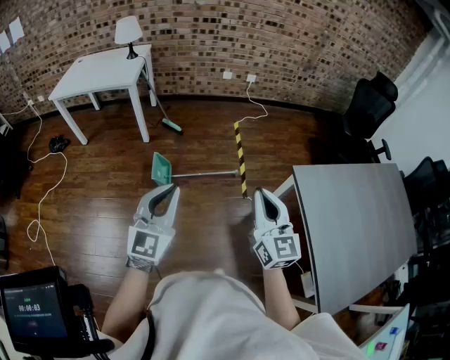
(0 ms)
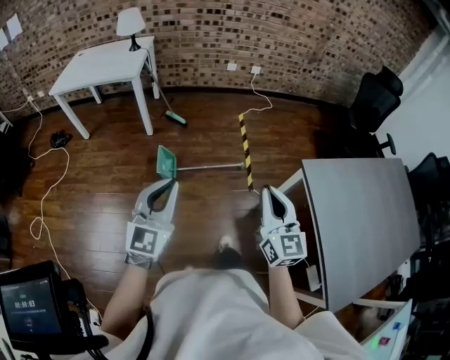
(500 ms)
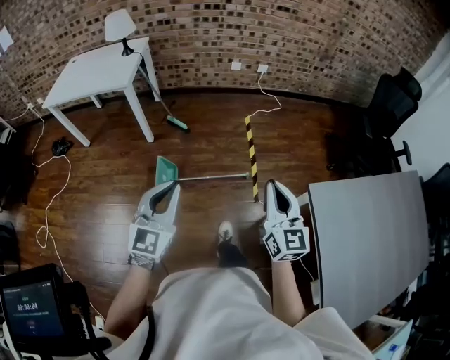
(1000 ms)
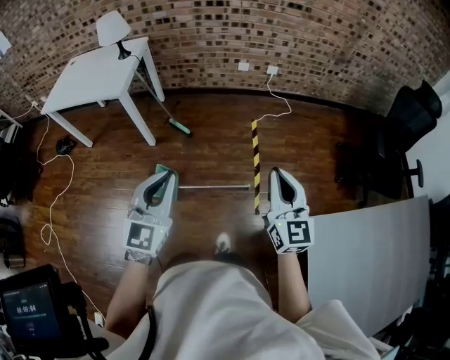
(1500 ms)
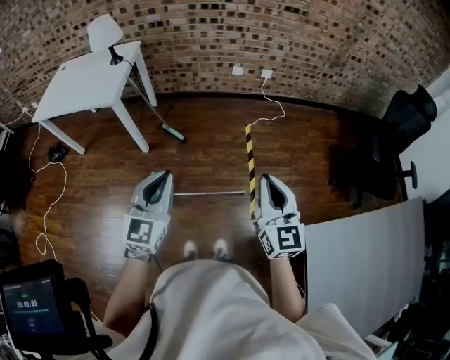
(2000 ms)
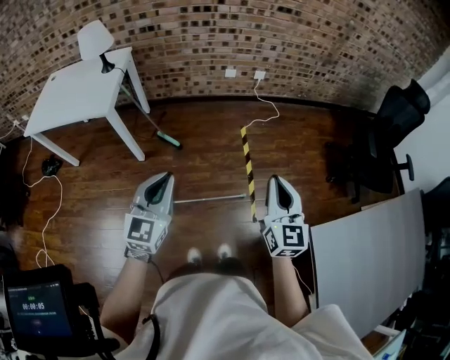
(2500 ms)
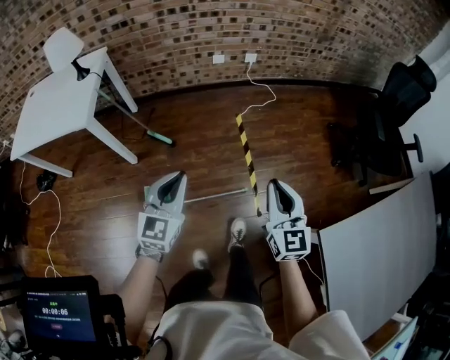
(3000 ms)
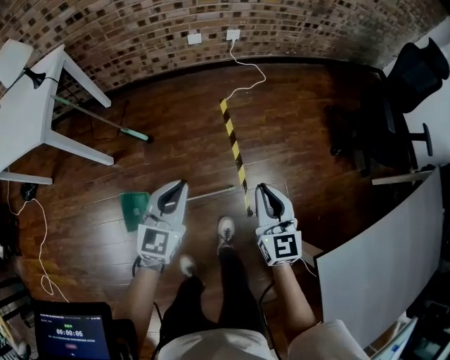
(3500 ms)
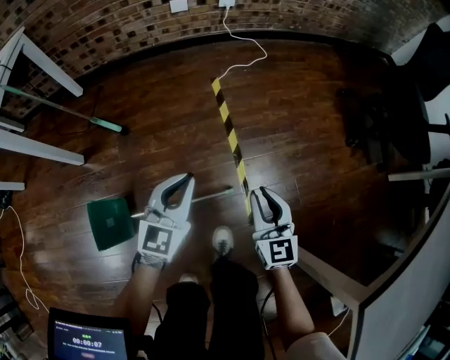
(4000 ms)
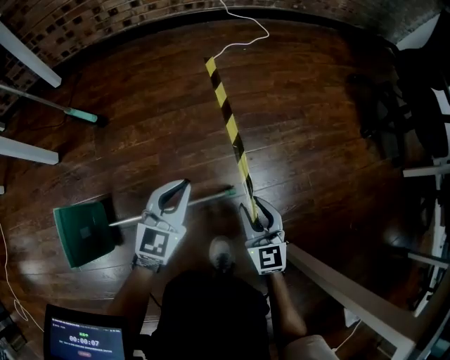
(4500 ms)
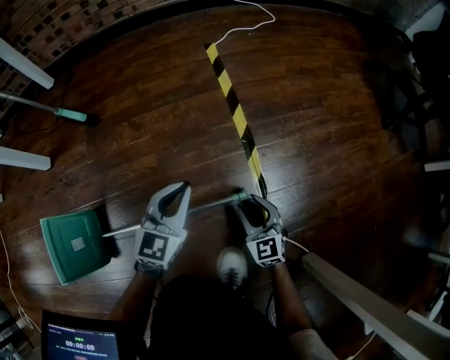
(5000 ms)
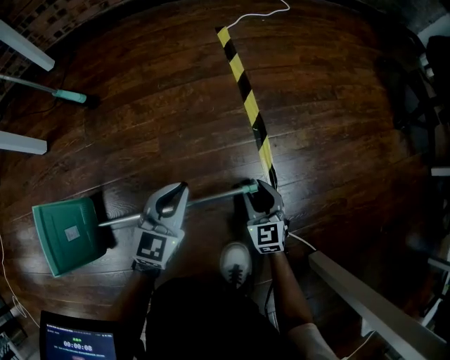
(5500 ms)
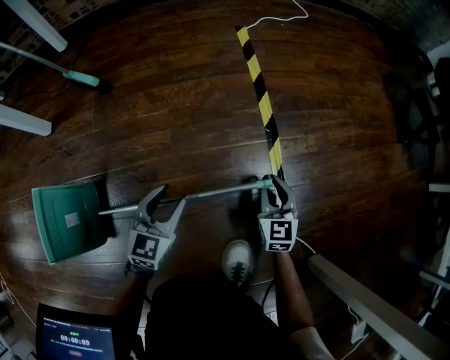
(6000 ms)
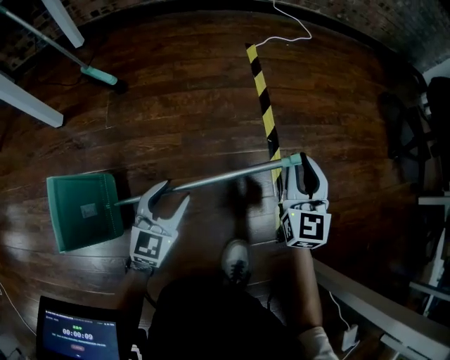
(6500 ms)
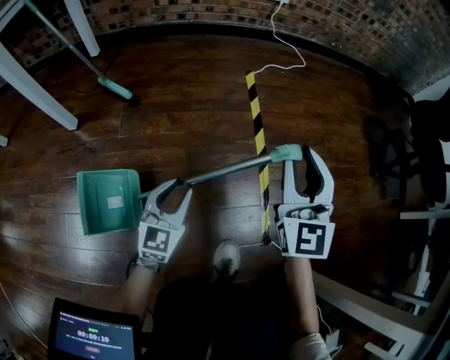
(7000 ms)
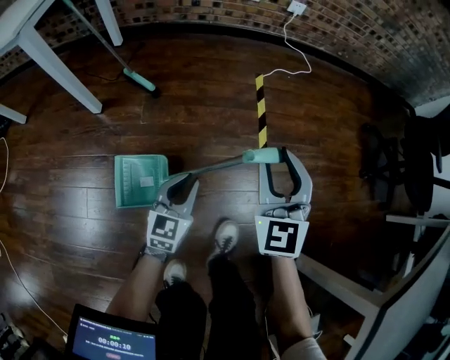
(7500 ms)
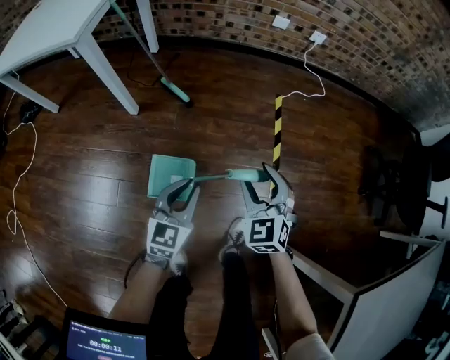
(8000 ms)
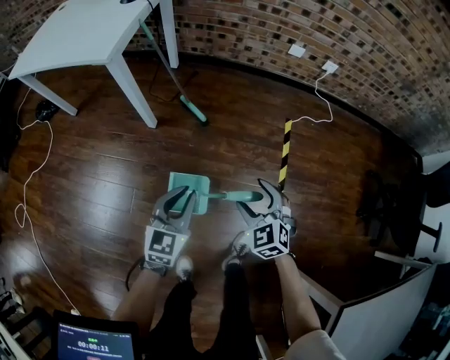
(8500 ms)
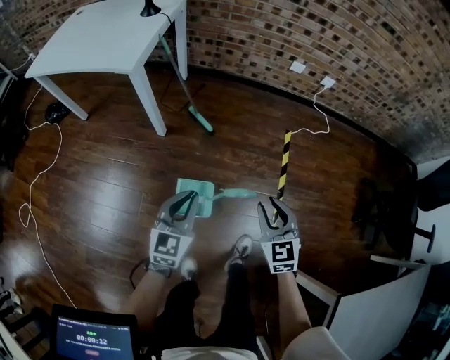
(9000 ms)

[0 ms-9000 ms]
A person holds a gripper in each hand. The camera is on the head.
0 ms to 2000 ms: Both grippers move forward, some 40 cm.
2000 ms to 4500 ms: The two grippers go about 70 cm downward. The right gripper opens up, while the left gripper rotates about 30 degrees.
4500 ms to 7000 ms: The right gripper is displaced upward and forward by roughly 20 cm, and changes its angle by some 20 degrees; the left gripper heads to the left and backward, covering approximately 10 cm, goes downward and returns, approximately 20 cm each way, and opens.
7000 ms to 9000 ms: The two grippers go some 40 cm upward and to the left. The right gripper turns by about 40 degrees, and opens, then closes again; the left gripper closes.

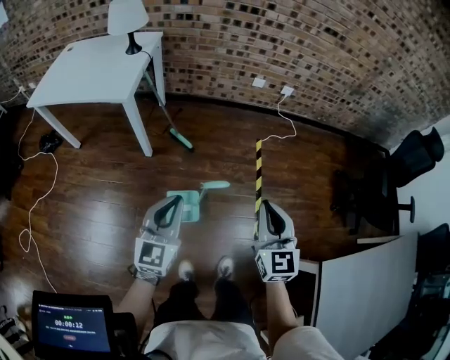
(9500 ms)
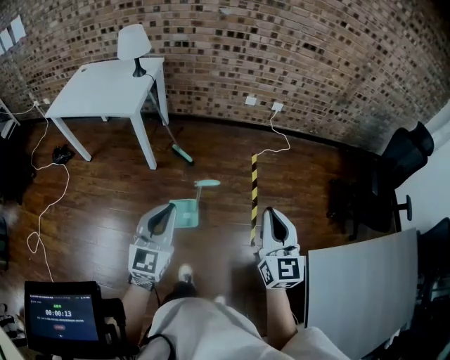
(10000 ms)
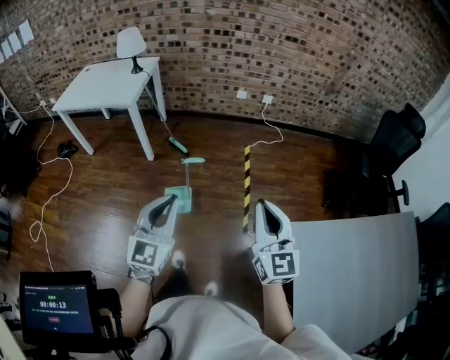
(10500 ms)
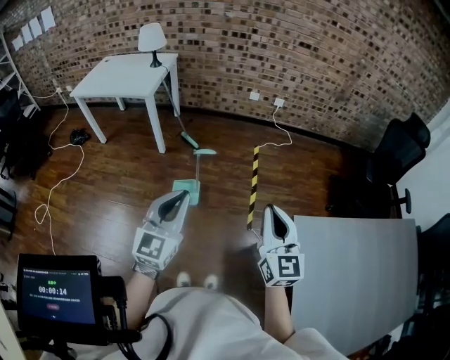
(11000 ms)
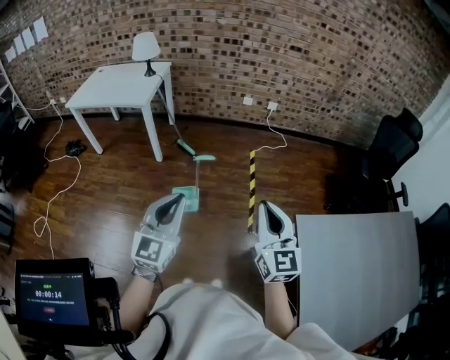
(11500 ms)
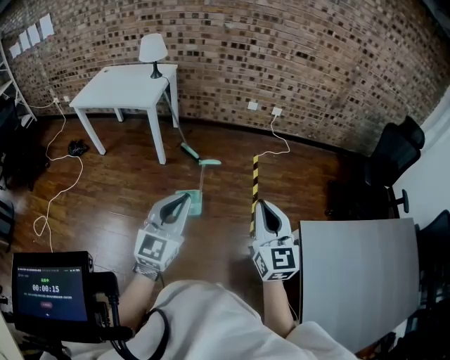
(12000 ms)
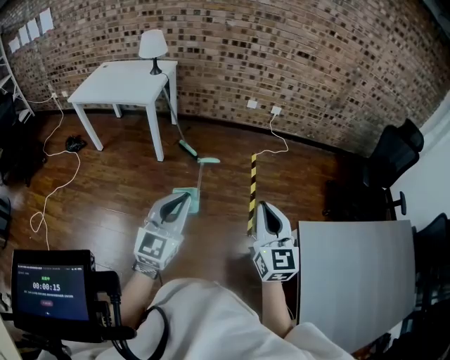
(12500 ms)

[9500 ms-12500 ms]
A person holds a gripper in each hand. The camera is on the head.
9500 ms to 11000 ms: The right gripper heads backward, to the right and upward, covering about 35 cm, while the left gripper travels backward, upward and to the right by some 35 cm.
11000 ms to 12500 ms: Both grippers move to the left, about 5 cm.

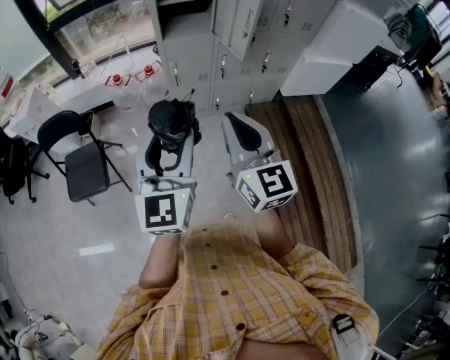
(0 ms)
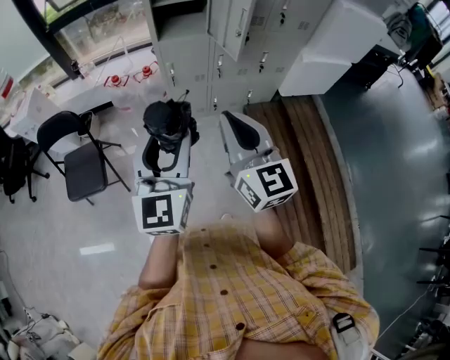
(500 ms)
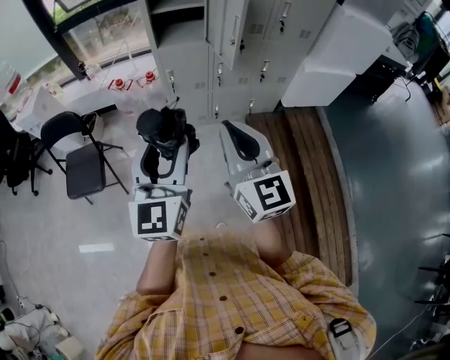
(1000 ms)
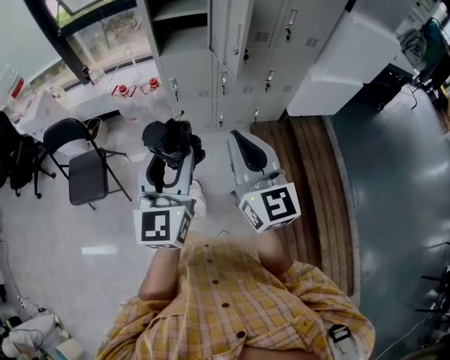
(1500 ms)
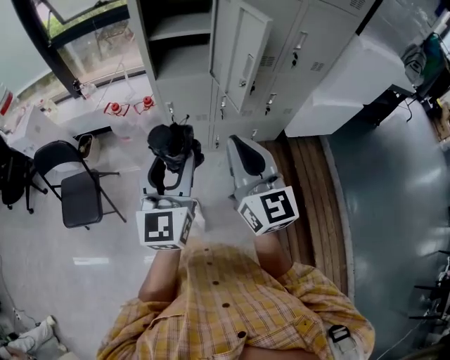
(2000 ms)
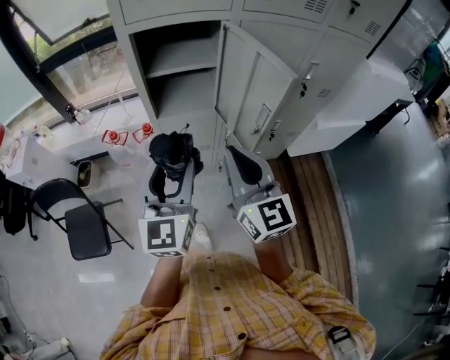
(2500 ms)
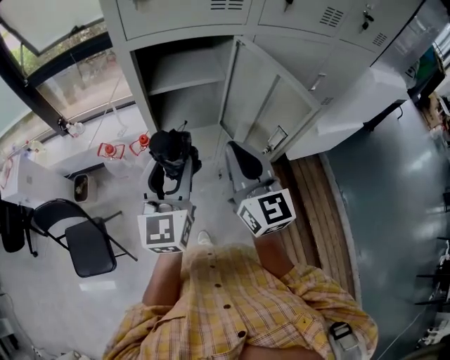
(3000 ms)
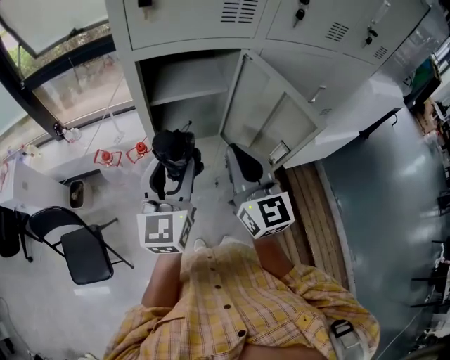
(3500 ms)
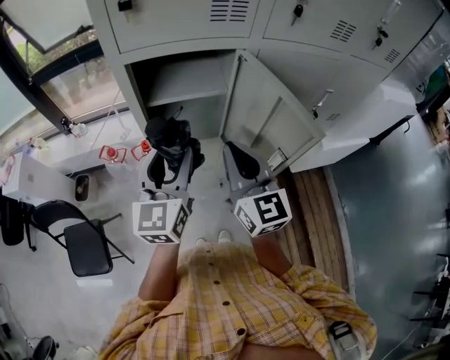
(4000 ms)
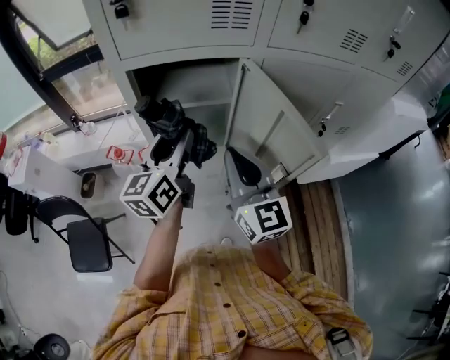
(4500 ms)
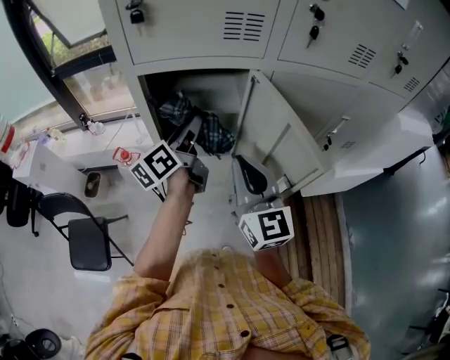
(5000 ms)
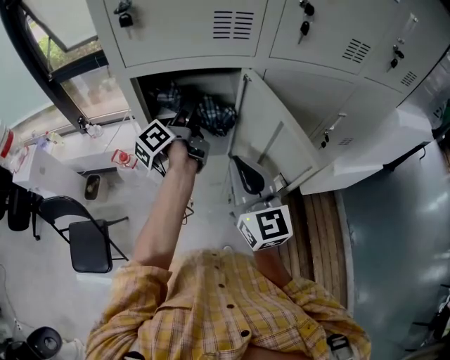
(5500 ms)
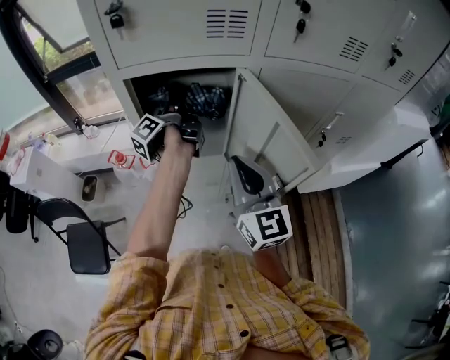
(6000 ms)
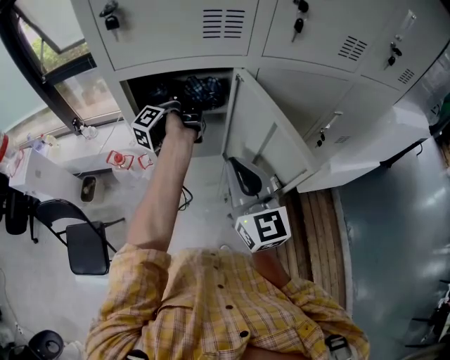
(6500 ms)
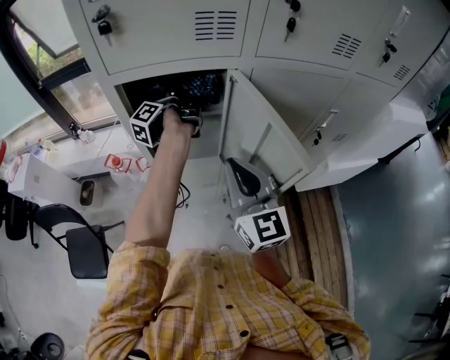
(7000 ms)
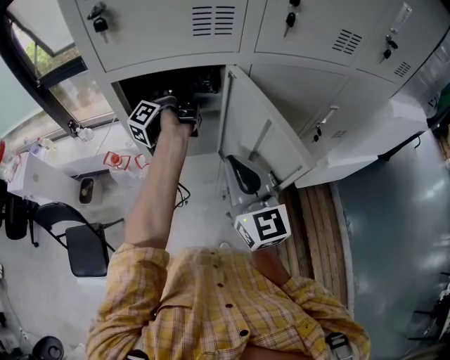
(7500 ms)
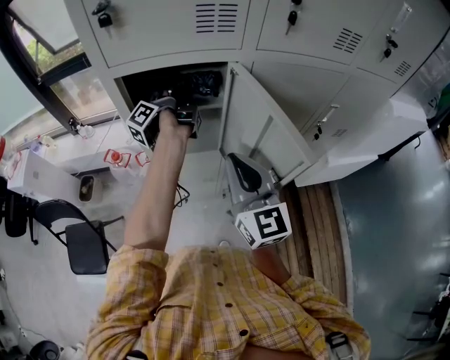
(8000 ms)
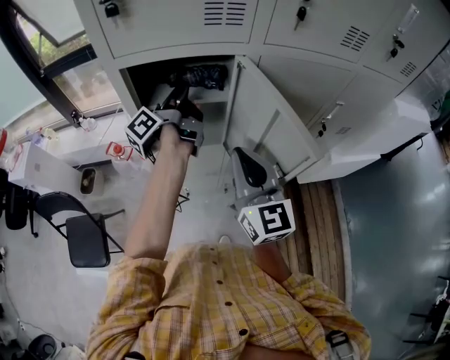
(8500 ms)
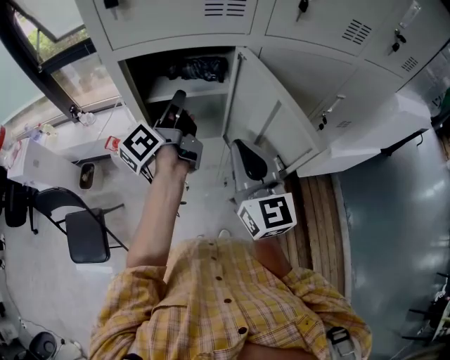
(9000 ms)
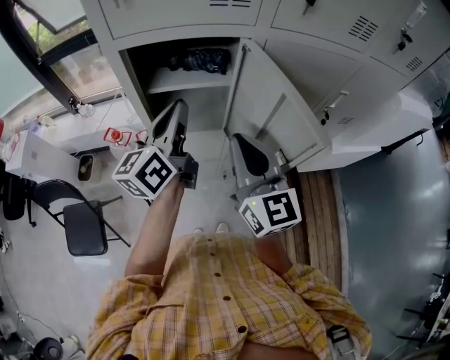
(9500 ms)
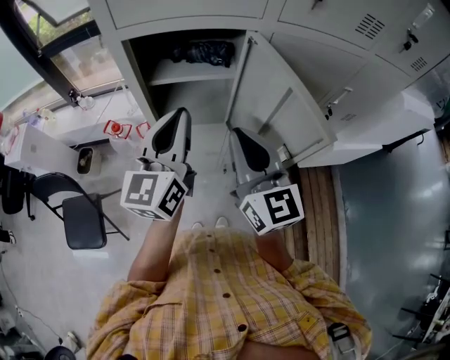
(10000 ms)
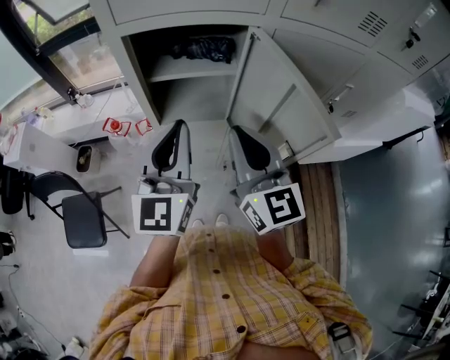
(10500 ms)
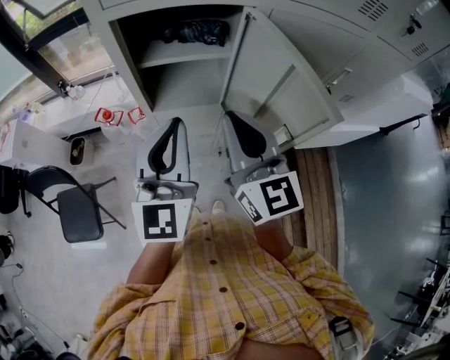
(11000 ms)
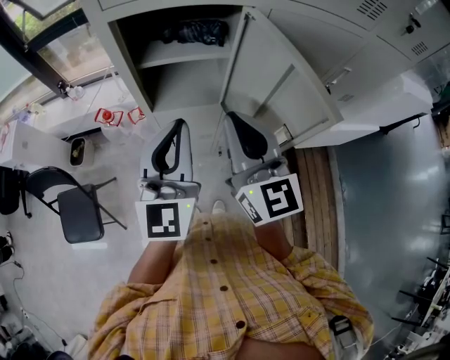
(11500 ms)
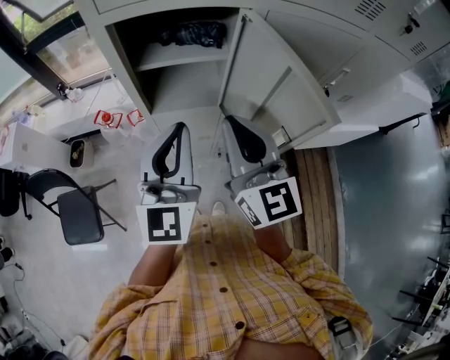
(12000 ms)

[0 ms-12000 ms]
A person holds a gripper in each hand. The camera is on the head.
0 ms to 2000 ms: The grippers both shift forward and to the right by some 20 cm.
2000 ms to 4000 ms: Both grippers move forward, some 30 cm.
4000 ms to 6000 ms: The left gripper goes roughly 25 cm forward, and twists roughly 90 degrees counterclockwise, seen from behind.
6000 ms to 8000 ms: The grippers stay close to where they were, moving slightly.
8000 ms to 10000 ms: The left gripper goes roughly 25 cm backward, rotates around the line of its fingers by roughly 80 degrees, clockwise from behind, and closes its fingers.
10000 ms to 12000 ms: The left gripper is displaced backward by roughly 5 cm.

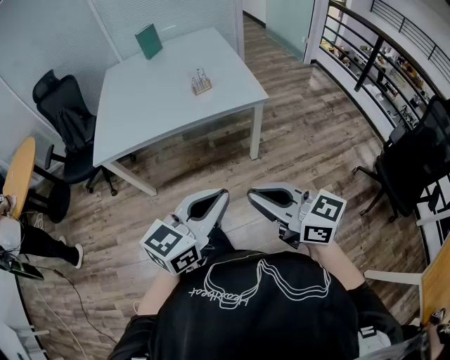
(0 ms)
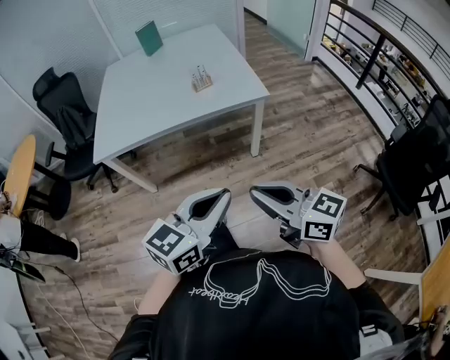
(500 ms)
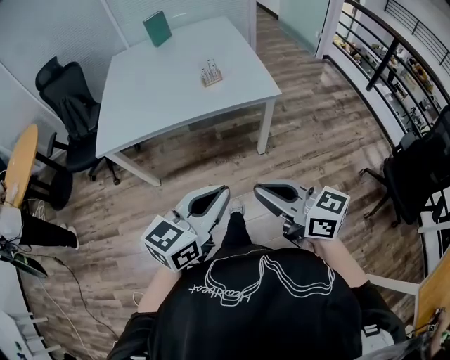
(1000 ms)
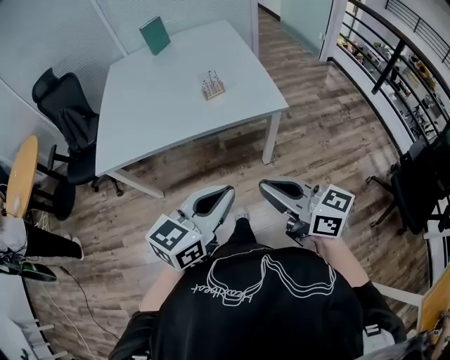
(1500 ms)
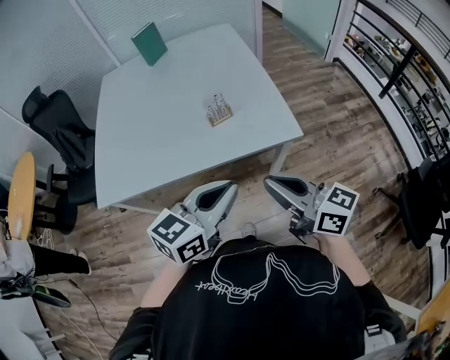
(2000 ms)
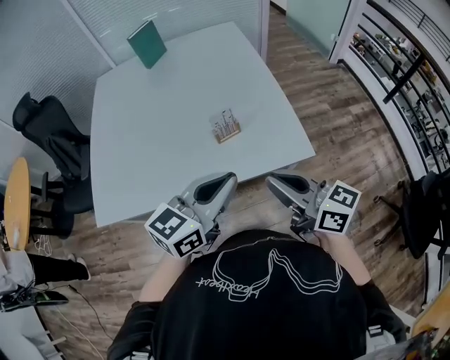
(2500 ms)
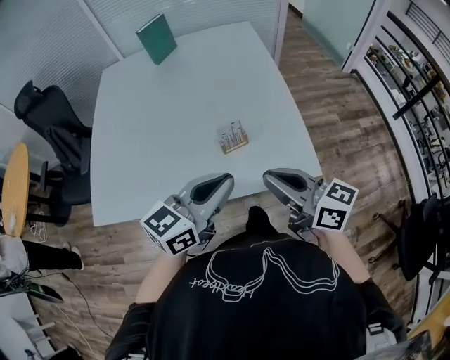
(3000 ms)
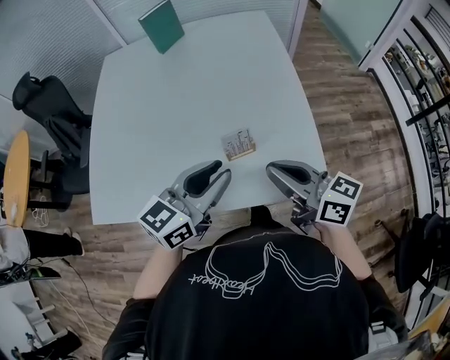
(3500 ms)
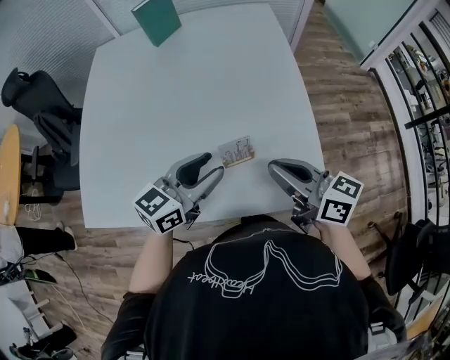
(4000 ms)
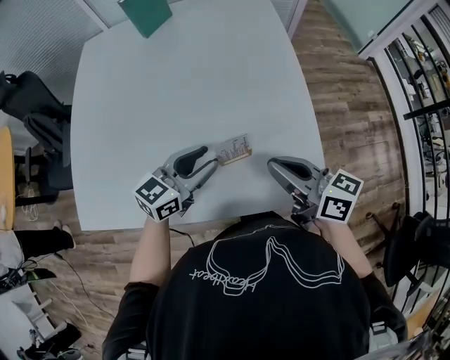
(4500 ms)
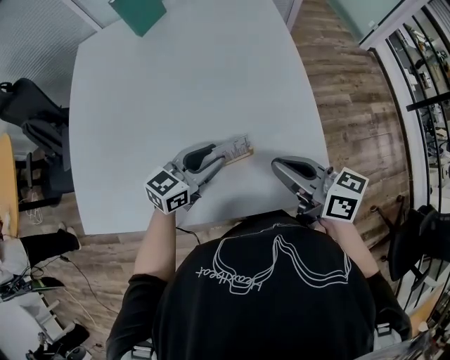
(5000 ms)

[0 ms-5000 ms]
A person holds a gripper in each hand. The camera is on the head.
0 ms to 2500 ms: Both grippers are carried forward, roughly 40 cm.
2500 ms to 5000 ms: Both grippers travel together forward and downward, approximately 30 cm. The left gripper opens.
